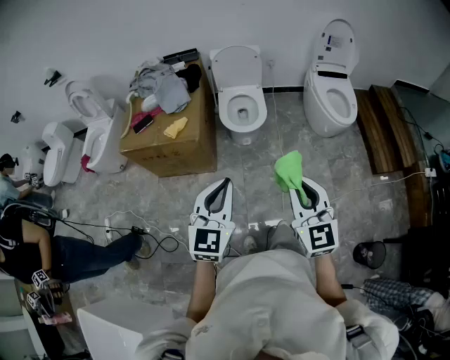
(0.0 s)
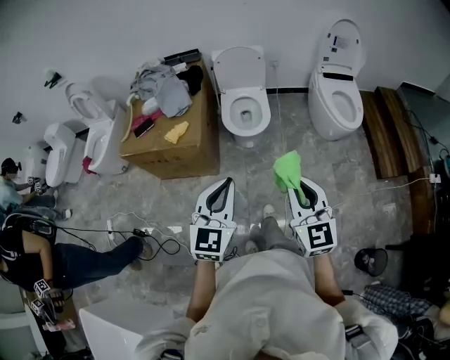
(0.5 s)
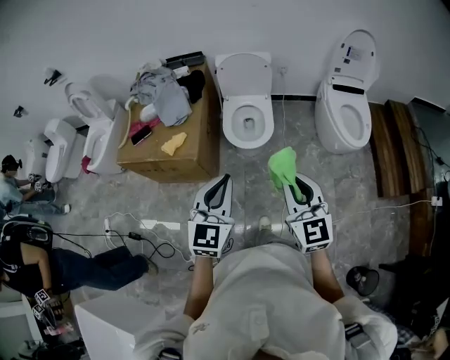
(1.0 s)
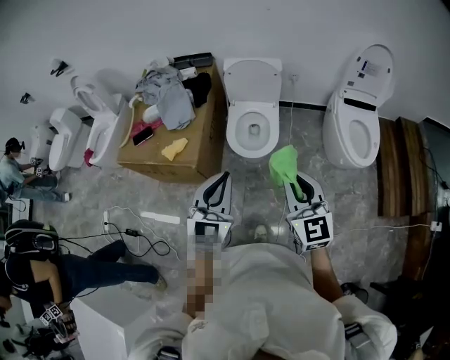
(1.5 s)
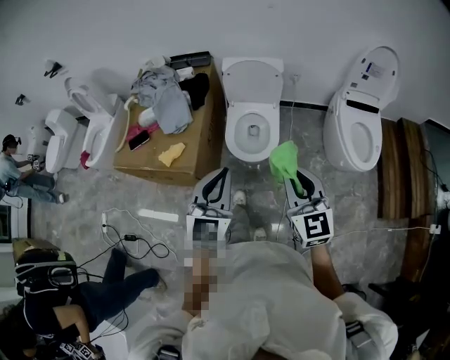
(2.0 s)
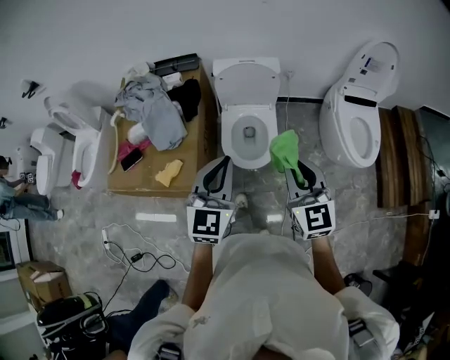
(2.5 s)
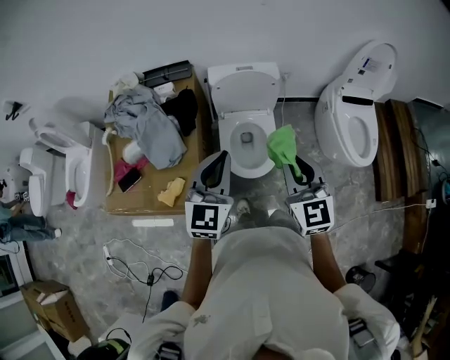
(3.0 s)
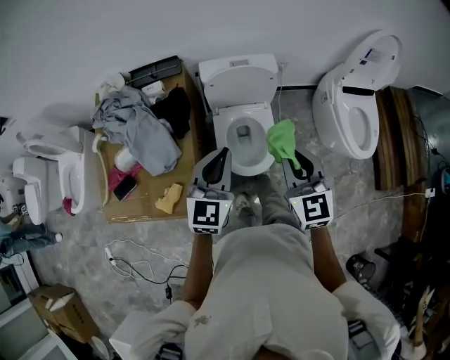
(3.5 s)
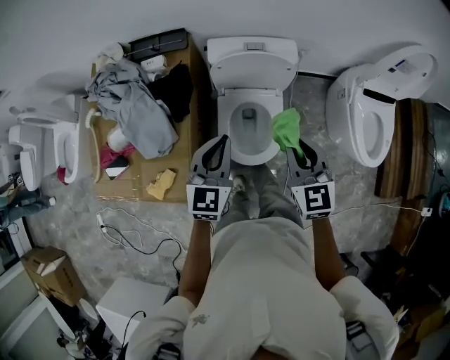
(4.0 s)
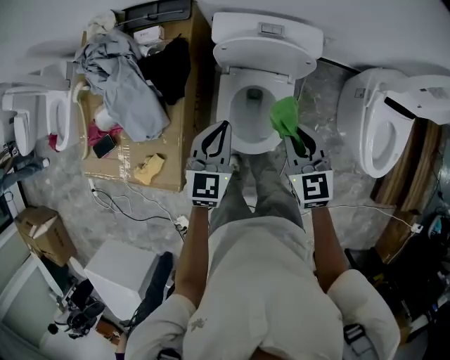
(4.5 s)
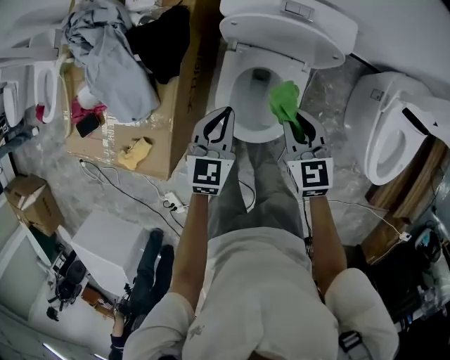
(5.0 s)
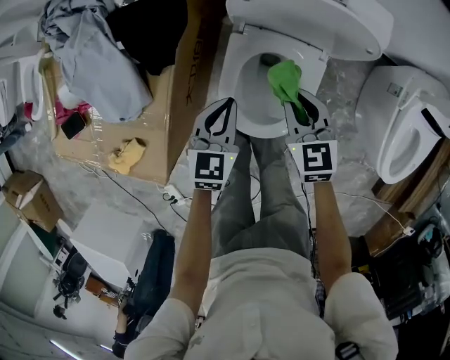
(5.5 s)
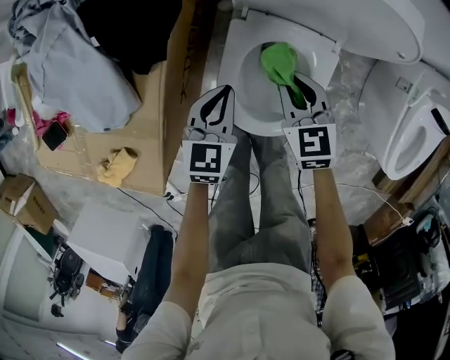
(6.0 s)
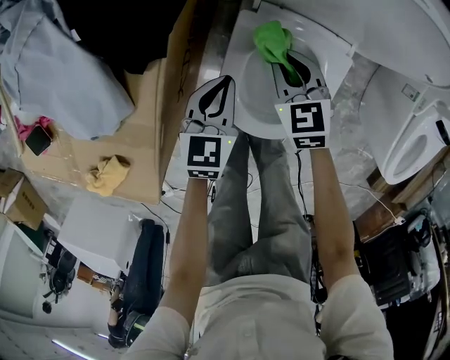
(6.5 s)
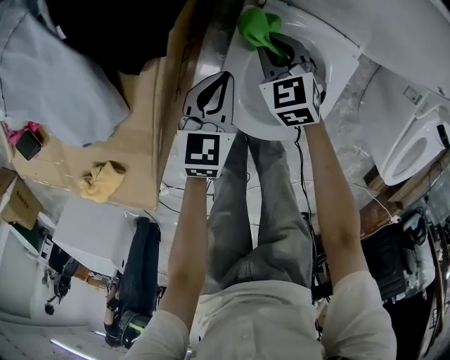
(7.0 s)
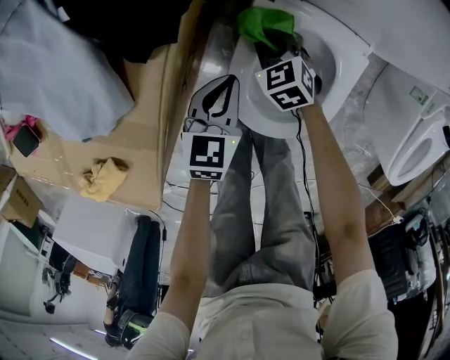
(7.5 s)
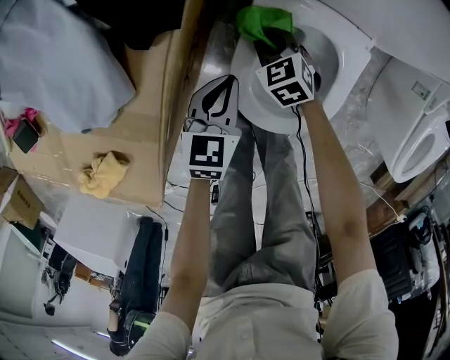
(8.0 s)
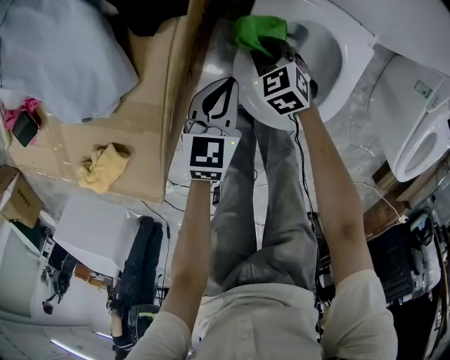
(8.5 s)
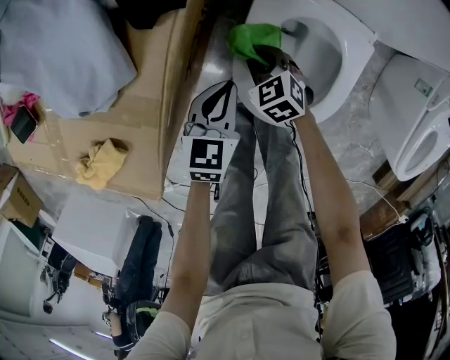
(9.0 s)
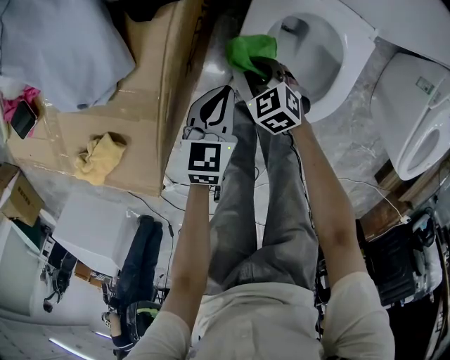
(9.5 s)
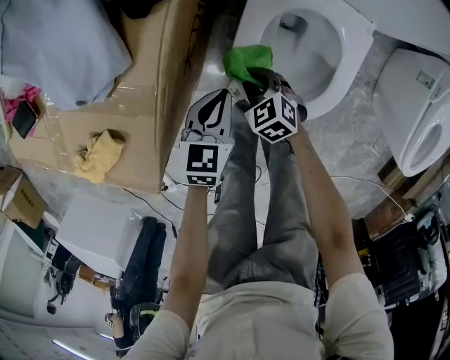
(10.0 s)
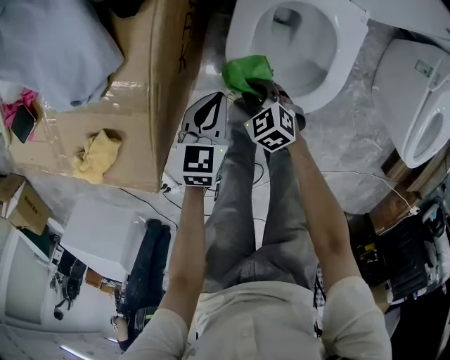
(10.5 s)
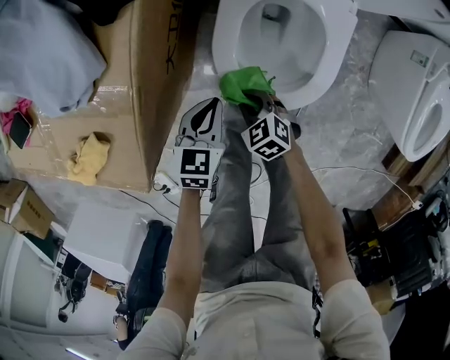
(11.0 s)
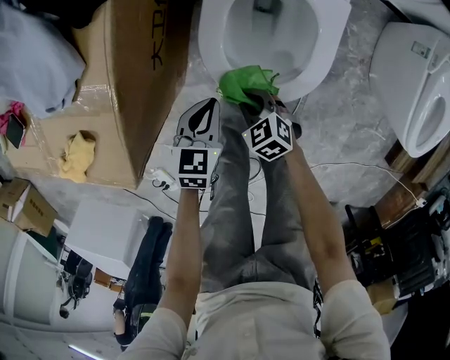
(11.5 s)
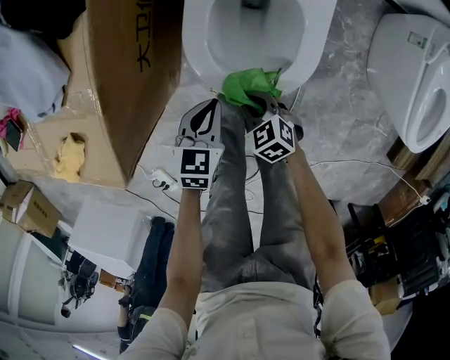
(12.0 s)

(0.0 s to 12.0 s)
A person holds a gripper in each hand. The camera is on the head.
0.0 s - 2.0 s: The grippers both shift forward by approximately 35 cm.
2.0 s - 4.0 s: The two grippers go some 35 cm forward.
4.0 s - 6.0 s: The two grippers go approximately 35 cm downward. The left gripper swivels roughly 20 degrees. Meanwhile the right gripper turns by approximately 30 degrees.
6.0 s - 8.0 s: The right gripper moves downward and to the left, about 20 cm, and changes its angle by approximately 20 degrees. The left gripper is displaced downward by some 10 cm.
8.0 s - 10.0 s: The right gripper moves backward, some 15 cm; the left gripper moves backward, roughly 10 cm.
10.0 s - 12.0 s: The grippers both shift backward and to the right by some 15 cm.

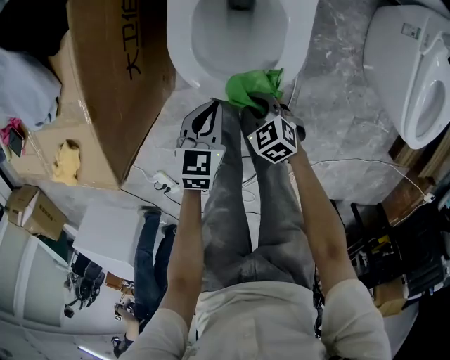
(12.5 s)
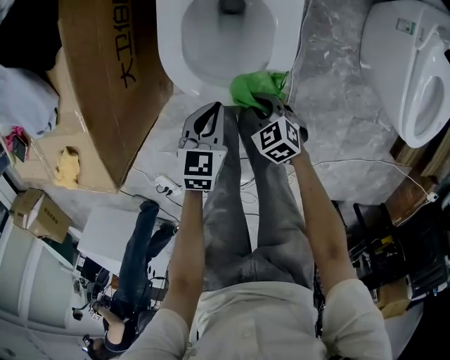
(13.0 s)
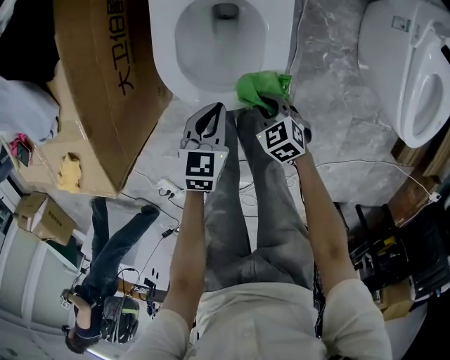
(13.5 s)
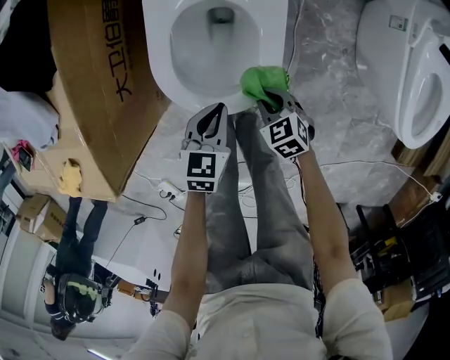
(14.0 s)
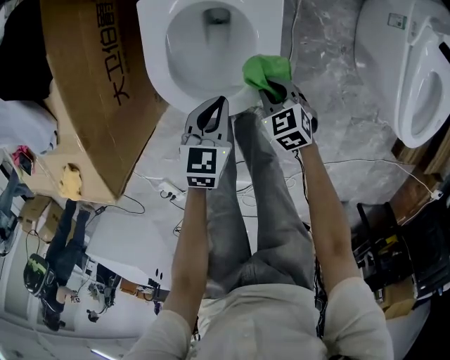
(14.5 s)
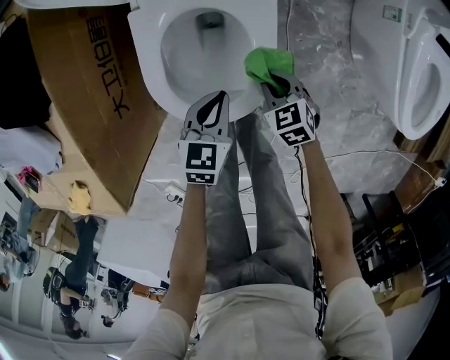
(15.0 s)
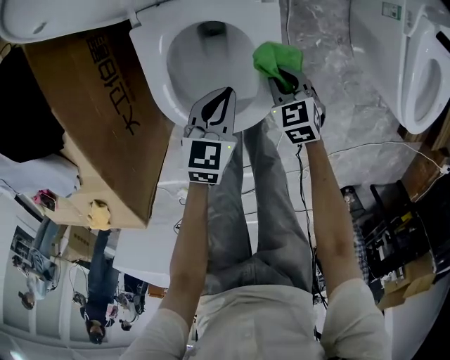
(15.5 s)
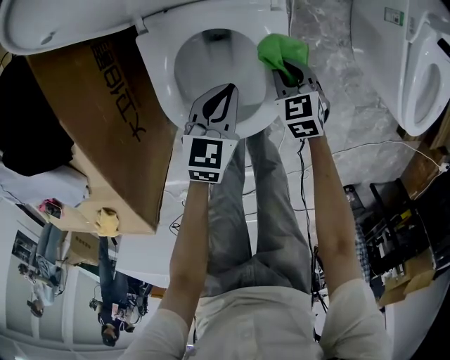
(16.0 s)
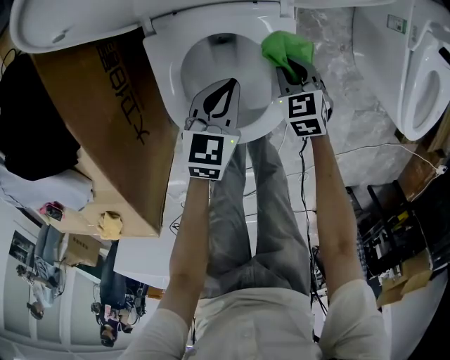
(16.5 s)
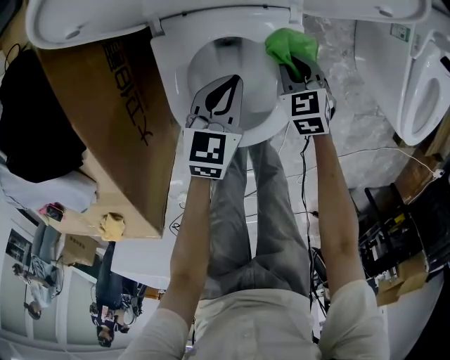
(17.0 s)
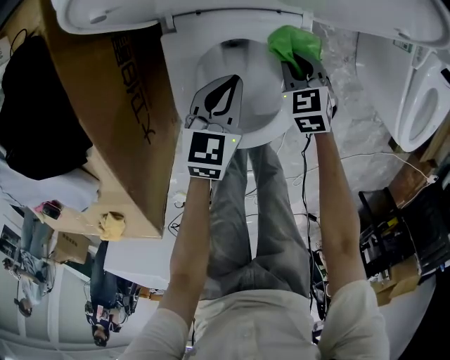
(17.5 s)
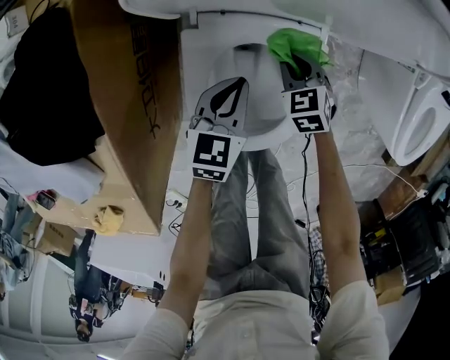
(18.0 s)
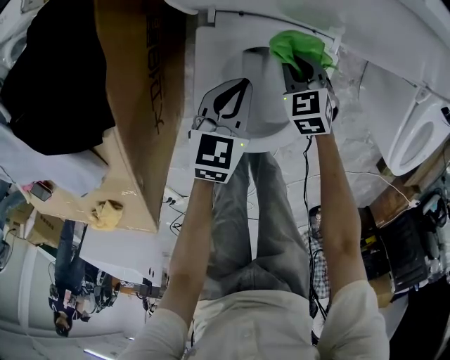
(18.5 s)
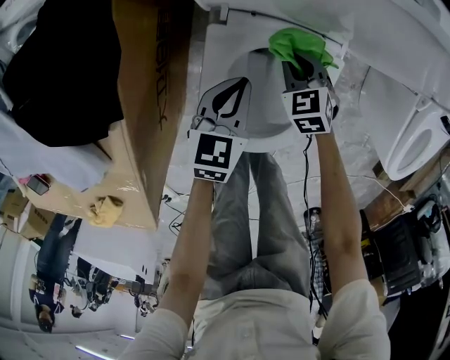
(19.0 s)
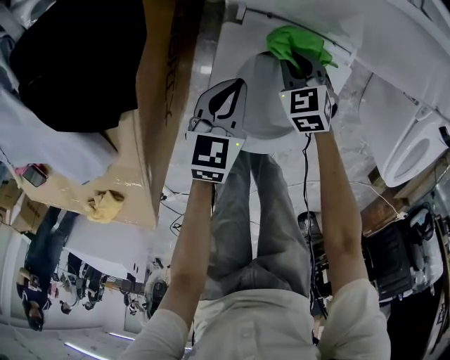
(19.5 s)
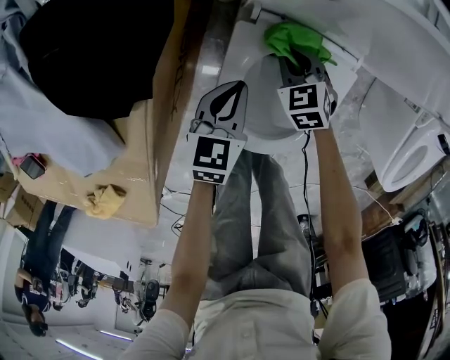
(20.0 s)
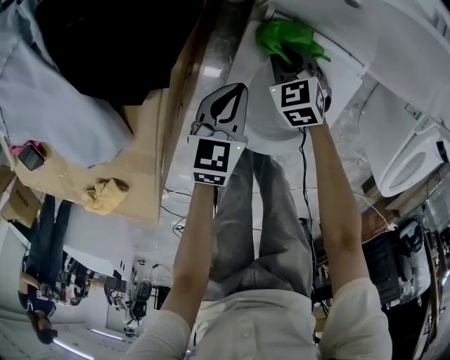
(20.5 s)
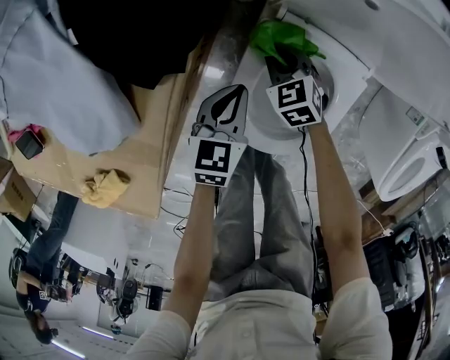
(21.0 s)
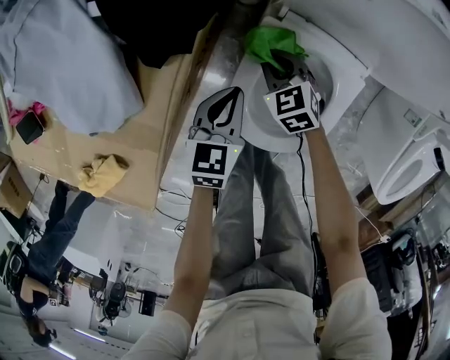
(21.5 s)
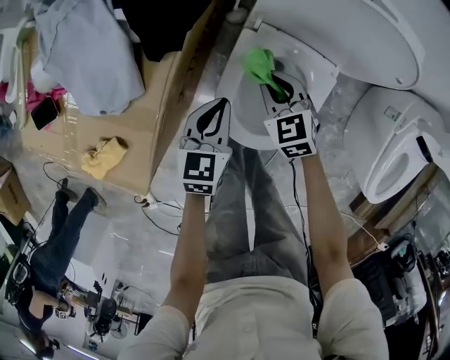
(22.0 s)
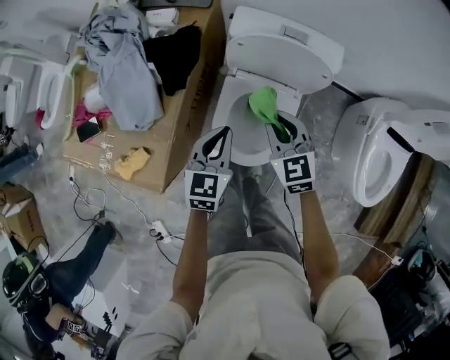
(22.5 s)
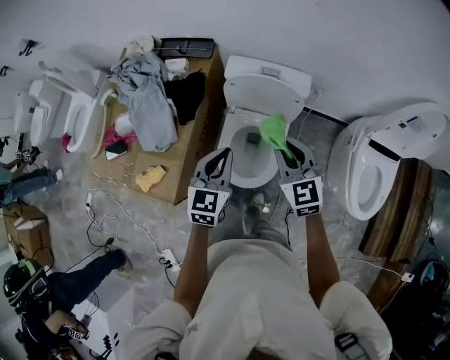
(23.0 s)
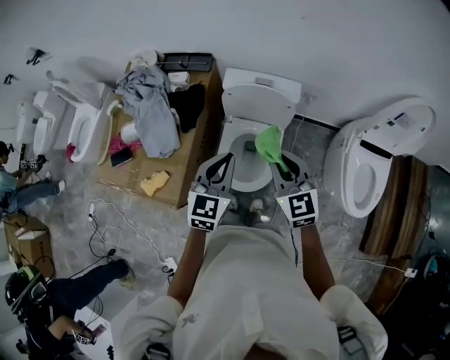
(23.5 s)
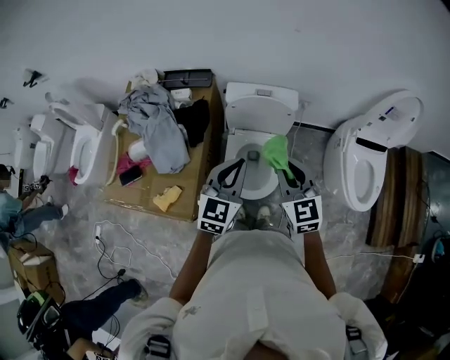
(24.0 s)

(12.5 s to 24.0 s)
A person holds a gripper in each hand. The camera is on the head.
12.5 s - 14.5 s: The left gripper heads to the right, covering approximately 10 cm. The right gripper goes some 15 cm to the right and forward.
14.5 s - 16.5 s: The two grippers go some 15 cm forward.
16.5 s - 18.5 s: The left gripper goes about 10 cm to the left. Meanwhile the right gripper is displaced to the left and forward by approximately 10 cm.
18.5 s - 20.0 s: Both grippers move to the left, approximately 10 cm.
20.0 s - 22.0 s: The left gripper shifts about 10 cm upward and backward, while the right gripper travels upward, to the left and backward by roughly 15 cm.
22.0 s - 24.0 s: The two grippers go about 50 cm upward. The right gripper rotates approximately 40 degrees; the left gripper turns by some 40 degrees.

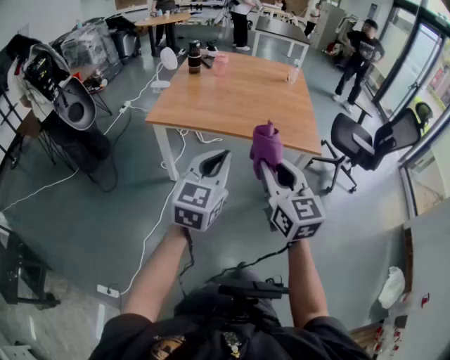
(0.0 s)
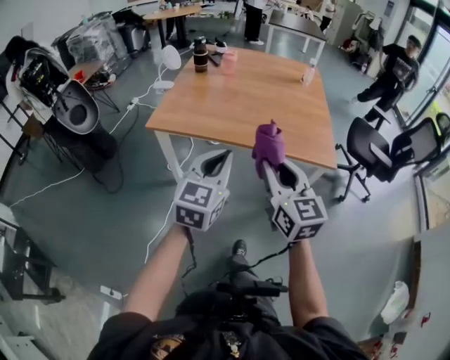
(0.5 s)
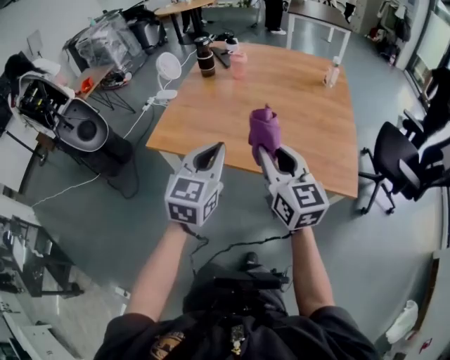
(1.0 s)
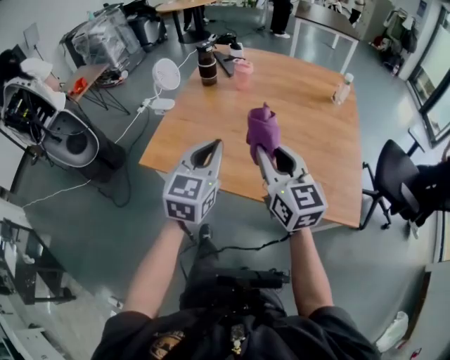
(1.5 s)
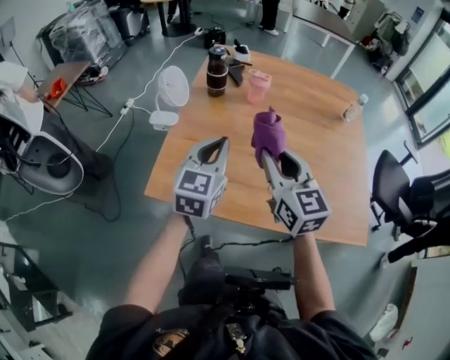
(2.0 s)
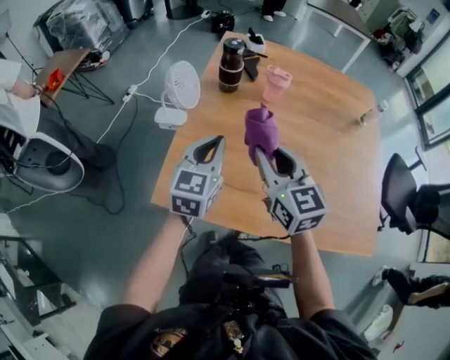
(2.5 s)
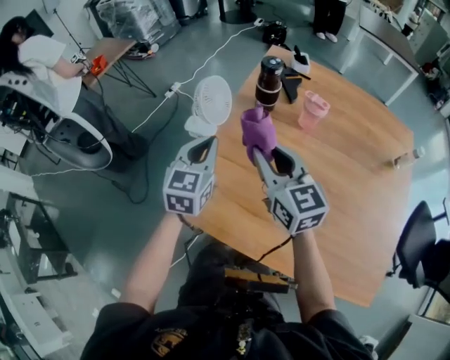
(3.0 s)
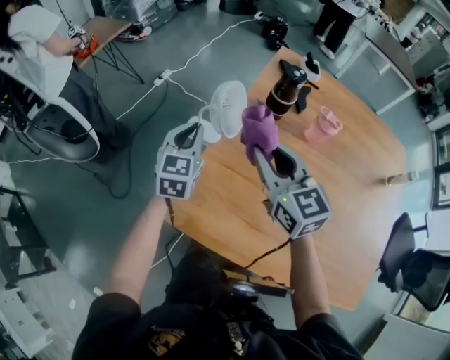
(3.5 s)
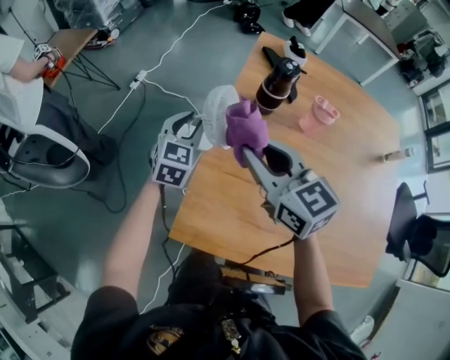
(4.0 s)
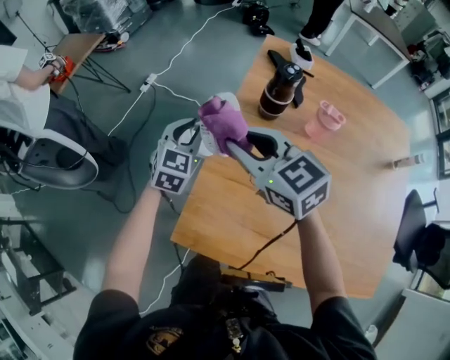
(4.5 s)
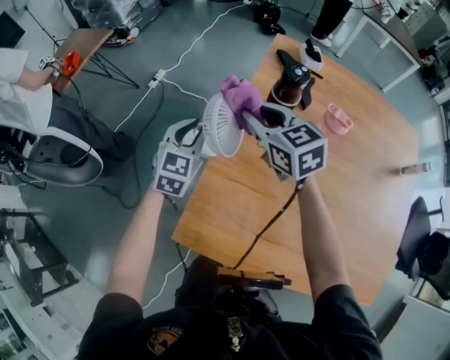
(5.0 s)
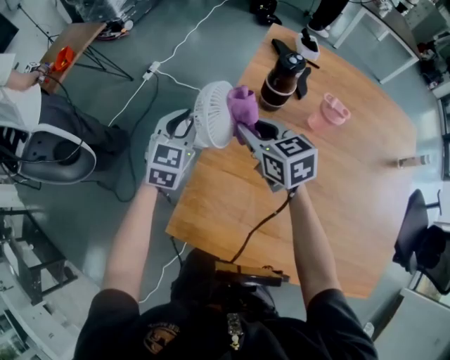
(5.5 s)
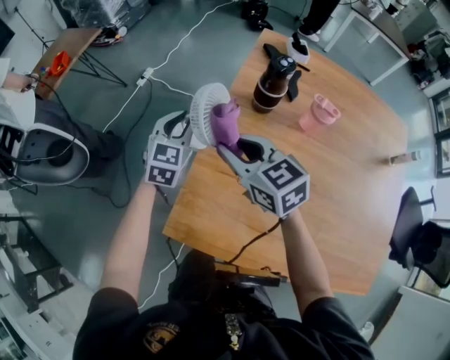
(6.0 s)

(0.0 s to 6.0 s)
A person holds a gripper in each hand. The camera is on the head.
0.0 s - 2.0 s: The two grippers travel together, forward, roughly 60 cm.
2.0 s - 4.0 s: Both grippers move forward and to the left, roughly 35 cm. The right gripper rotates about 30 degrees; the left gripper opens.
4.0 s - 6.0 s: The right gripper heads downward, covering roughly 5 cm, and moves approximately 10 cm forward and comes back.
